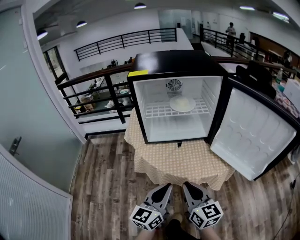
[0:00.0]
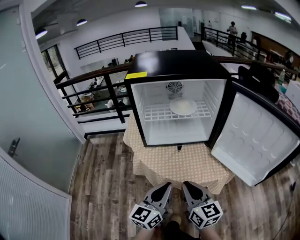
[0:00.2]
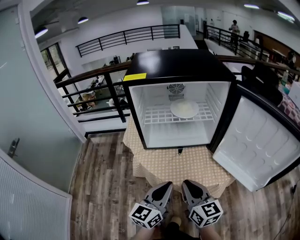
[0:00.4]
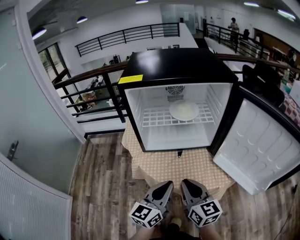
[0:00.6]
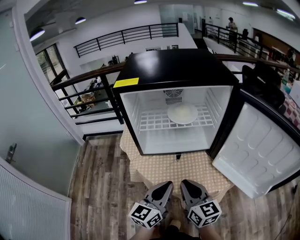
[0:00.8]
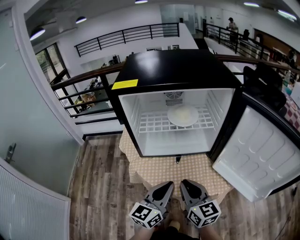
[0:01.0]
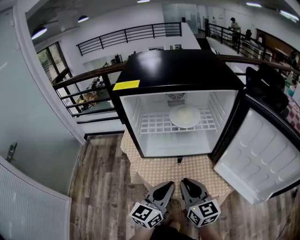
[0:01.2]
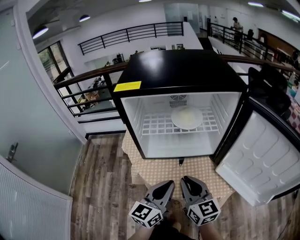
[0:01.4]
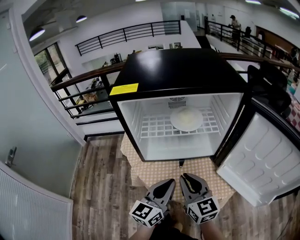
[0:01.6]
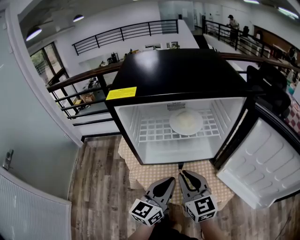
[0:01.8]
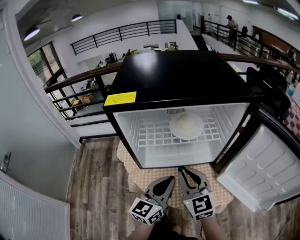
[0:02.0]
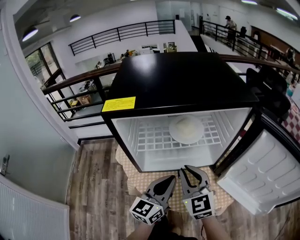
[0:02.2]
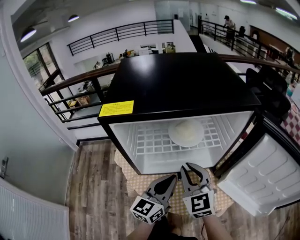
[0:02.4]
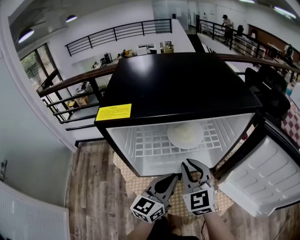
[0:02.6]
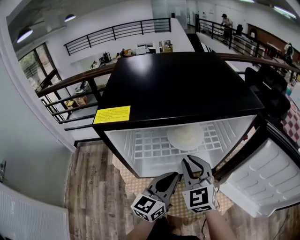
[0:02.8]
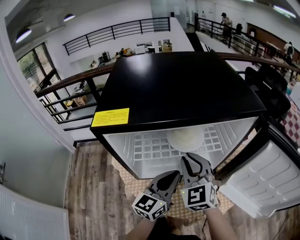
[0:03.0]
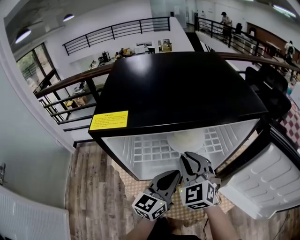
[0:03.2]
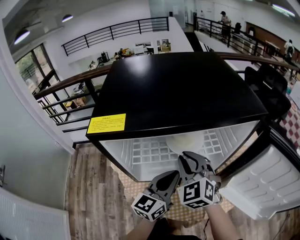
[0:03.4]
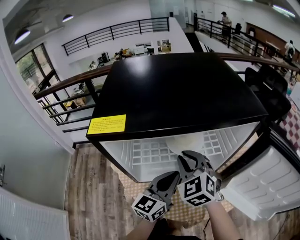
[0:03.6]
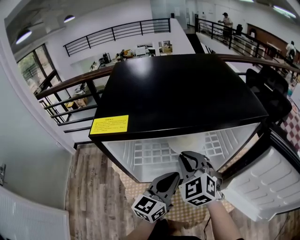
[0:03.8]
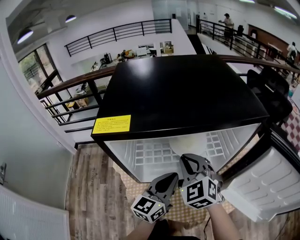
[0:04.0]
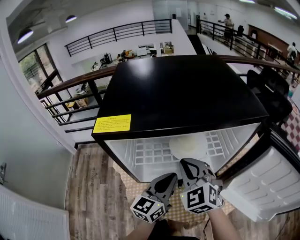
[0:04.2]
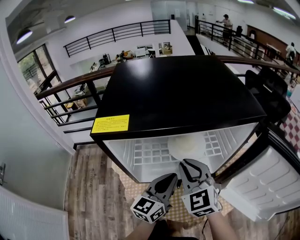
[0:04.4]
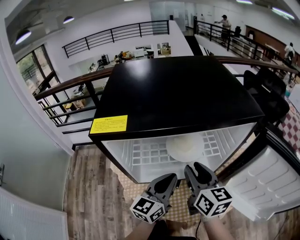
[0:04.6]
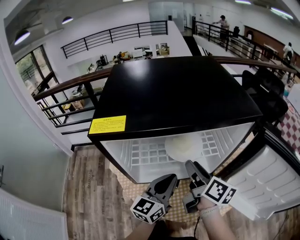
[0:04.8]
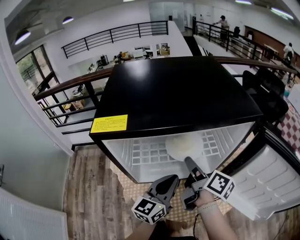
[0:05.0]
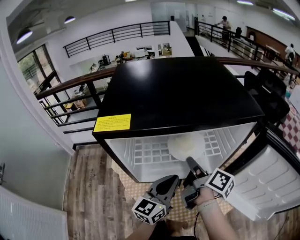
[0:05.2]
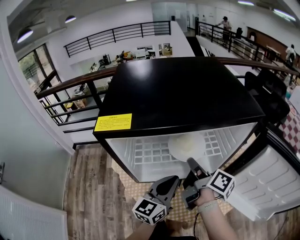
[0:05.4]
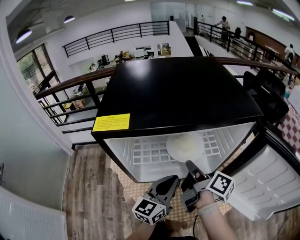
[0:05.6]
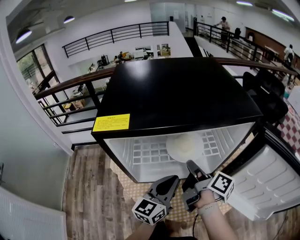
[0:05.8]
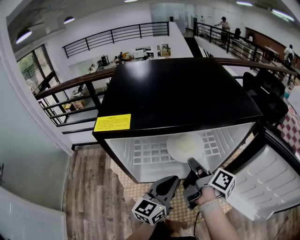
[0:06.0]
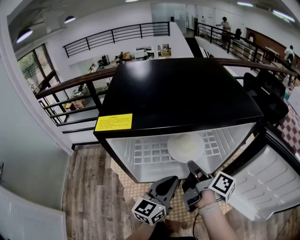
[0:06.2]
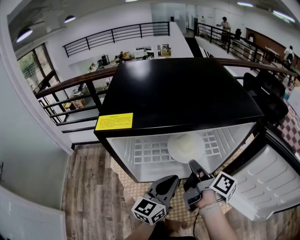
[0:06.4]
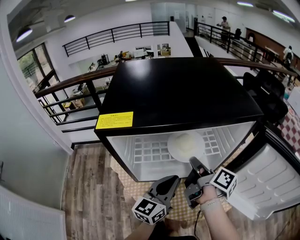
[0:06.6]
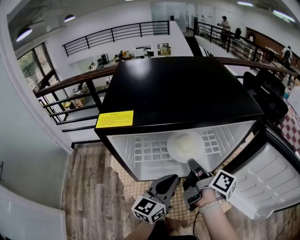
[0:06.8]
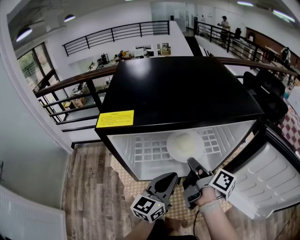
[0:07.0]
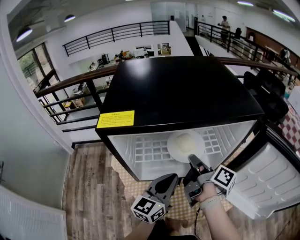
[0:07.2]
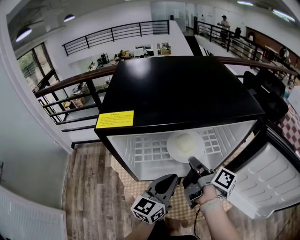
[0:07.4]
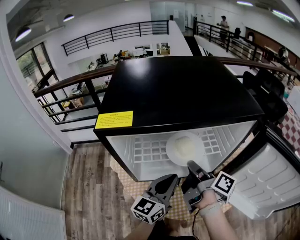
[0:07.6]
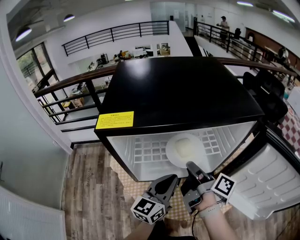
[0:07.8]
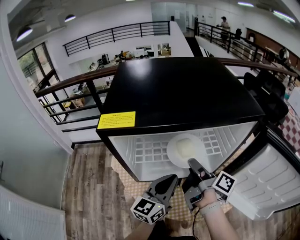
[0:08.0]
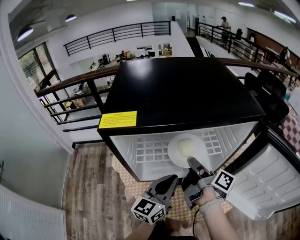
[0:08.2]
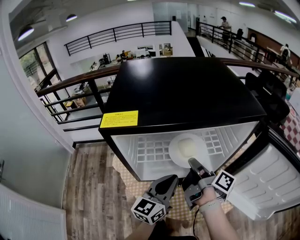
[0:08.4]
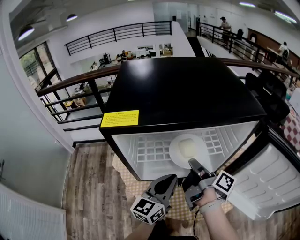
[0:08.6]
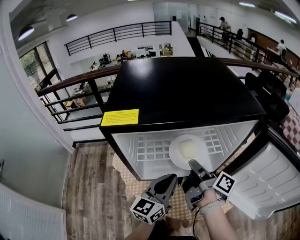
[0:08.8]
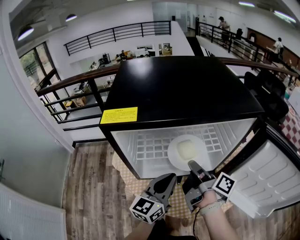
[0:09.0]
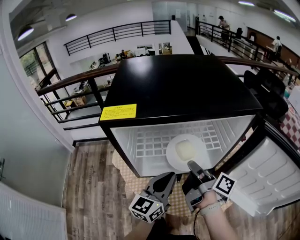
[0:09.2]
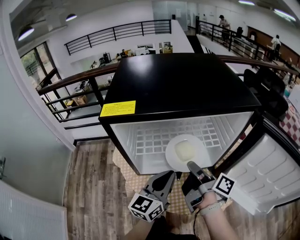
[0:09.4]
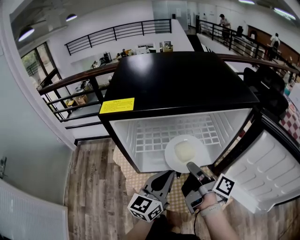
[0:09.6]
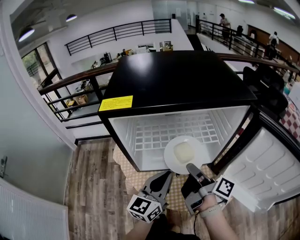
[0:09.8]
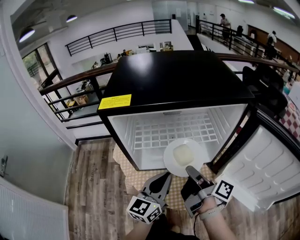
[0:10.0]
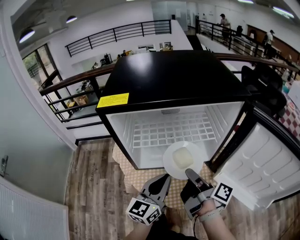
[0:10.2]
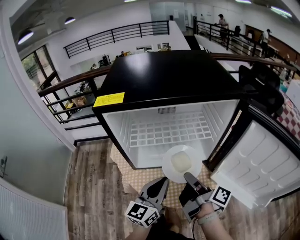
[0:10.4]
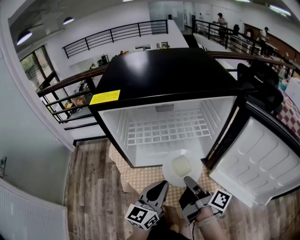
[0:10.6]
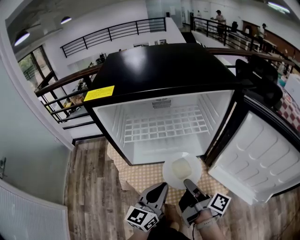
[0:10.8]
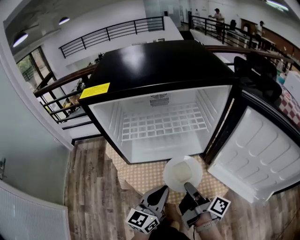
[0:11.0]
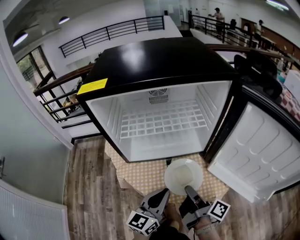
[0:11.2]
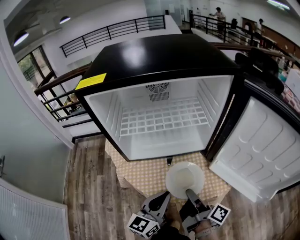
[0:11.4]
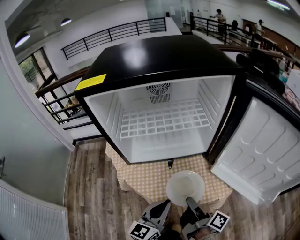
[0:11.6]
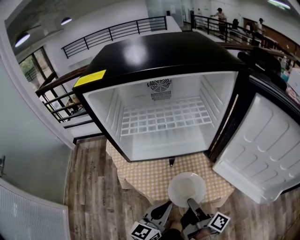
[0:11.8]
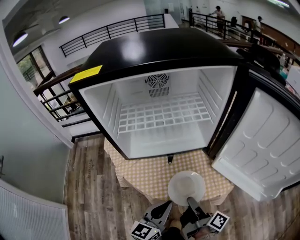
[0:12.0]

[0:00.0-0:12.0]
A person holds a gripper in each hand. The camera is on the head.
0:00.0 to 0:01.6: The grippers both shift forward by approximately 15 cm.
0:01.6 to 0:03.0: The two grippers go approximately 15 cm forward. The right gripper changes its angle by some 40 degrees.
0:03.0 to 0:04.4: The grippers move only a little.
0:04.4 to 0:06.0: The right gripper heads to the right, covering roughly 5 cm, rolls clockwise, seen from behind, by approximately 100 degrees, and opens, then closes again.
0:06.0 to 0:09.0: The grippers move only a little.
0:09.0 to 0:10.4: The two grippers go approximately 10 cm backward.
0:10.4 to 0:12.0: Both grippers move downward and backward, about 15 cm.

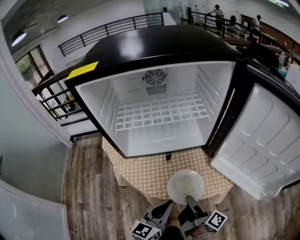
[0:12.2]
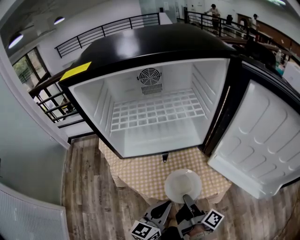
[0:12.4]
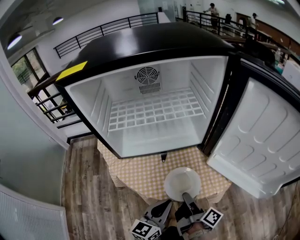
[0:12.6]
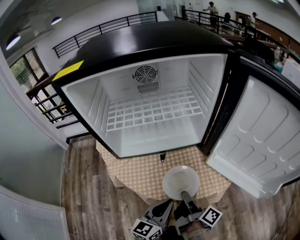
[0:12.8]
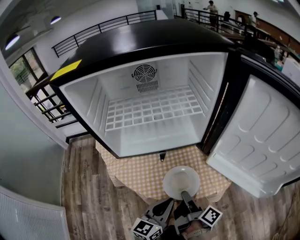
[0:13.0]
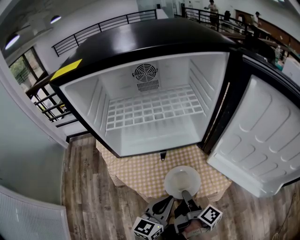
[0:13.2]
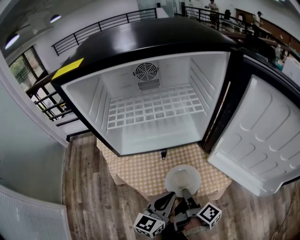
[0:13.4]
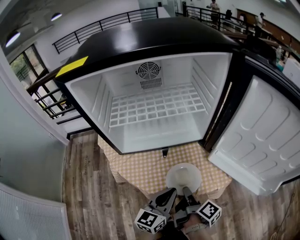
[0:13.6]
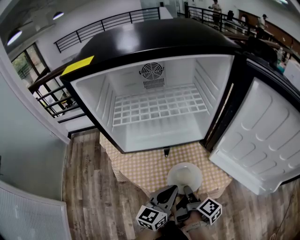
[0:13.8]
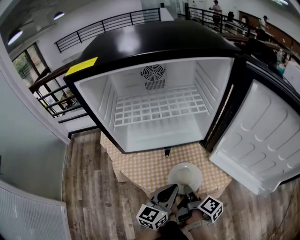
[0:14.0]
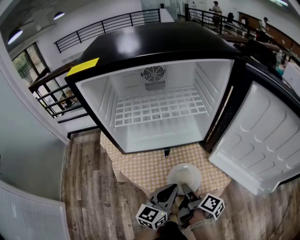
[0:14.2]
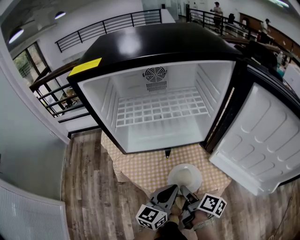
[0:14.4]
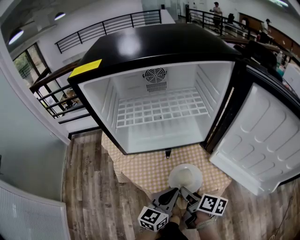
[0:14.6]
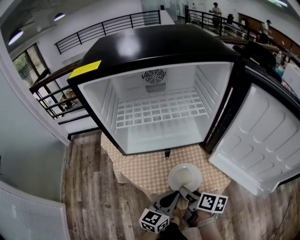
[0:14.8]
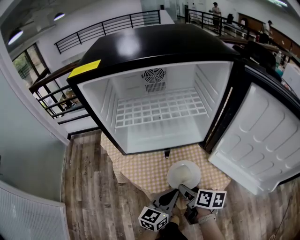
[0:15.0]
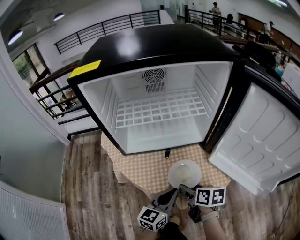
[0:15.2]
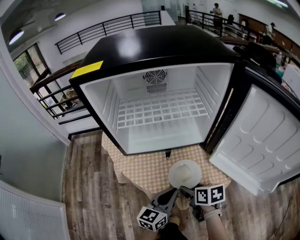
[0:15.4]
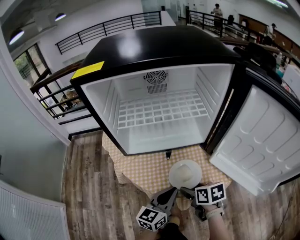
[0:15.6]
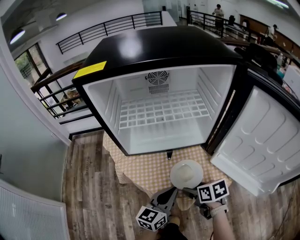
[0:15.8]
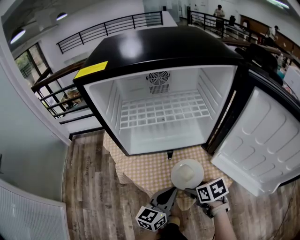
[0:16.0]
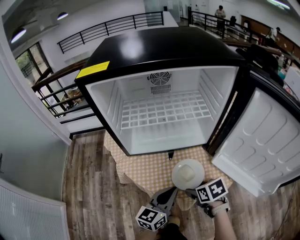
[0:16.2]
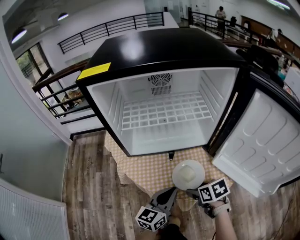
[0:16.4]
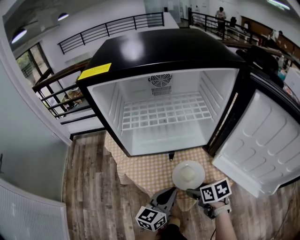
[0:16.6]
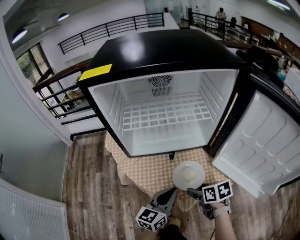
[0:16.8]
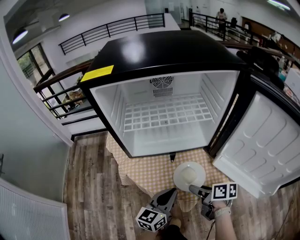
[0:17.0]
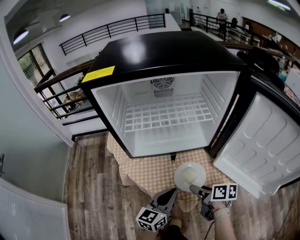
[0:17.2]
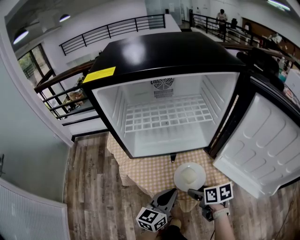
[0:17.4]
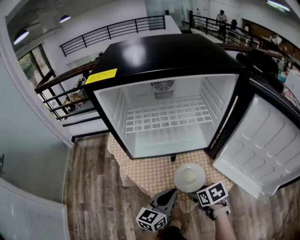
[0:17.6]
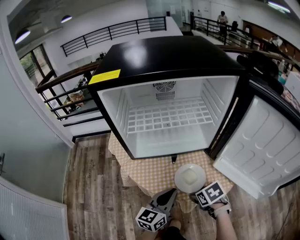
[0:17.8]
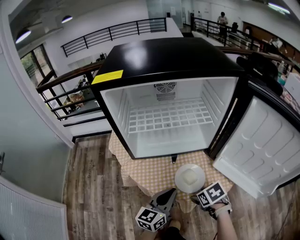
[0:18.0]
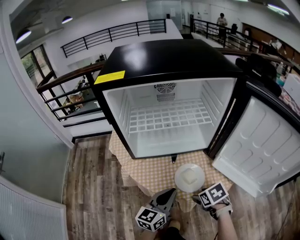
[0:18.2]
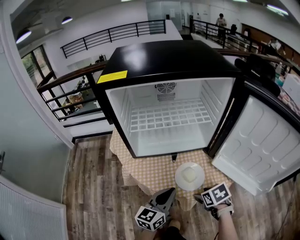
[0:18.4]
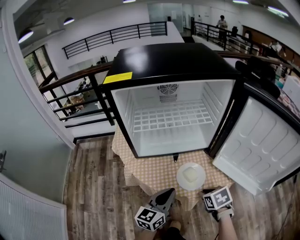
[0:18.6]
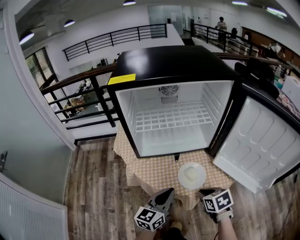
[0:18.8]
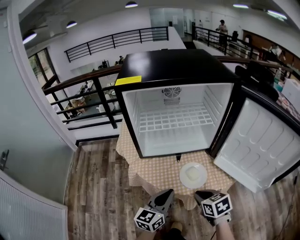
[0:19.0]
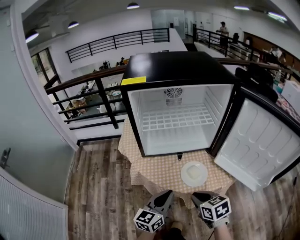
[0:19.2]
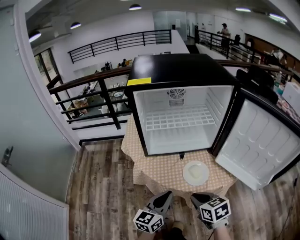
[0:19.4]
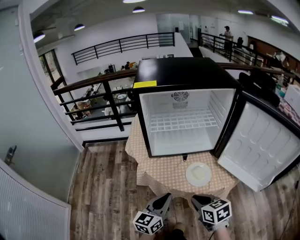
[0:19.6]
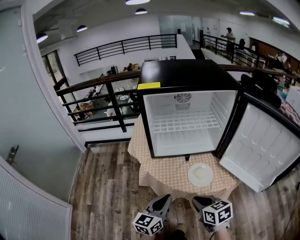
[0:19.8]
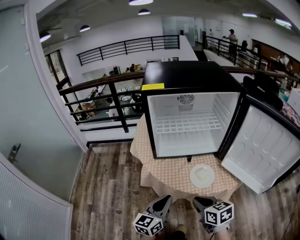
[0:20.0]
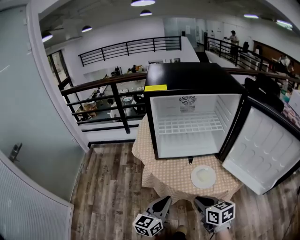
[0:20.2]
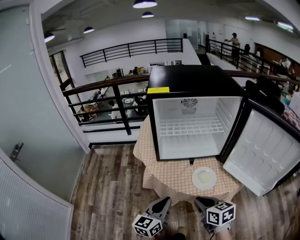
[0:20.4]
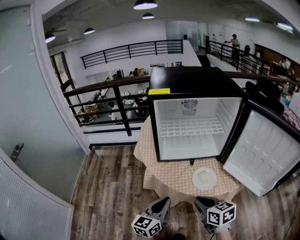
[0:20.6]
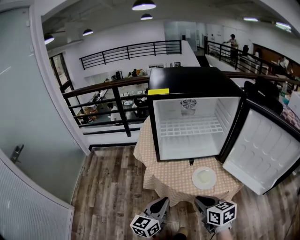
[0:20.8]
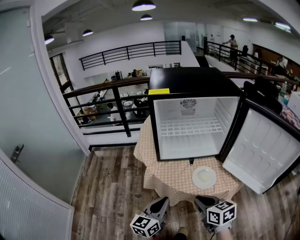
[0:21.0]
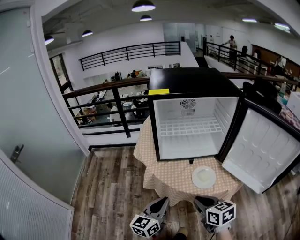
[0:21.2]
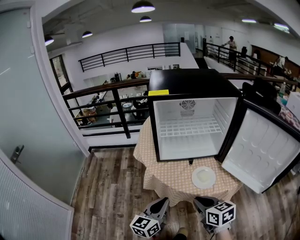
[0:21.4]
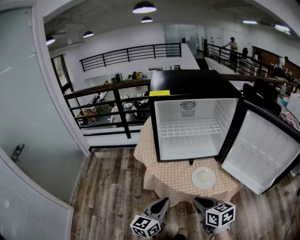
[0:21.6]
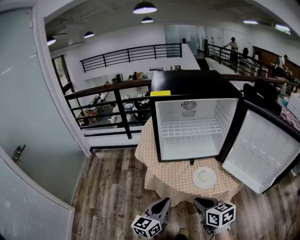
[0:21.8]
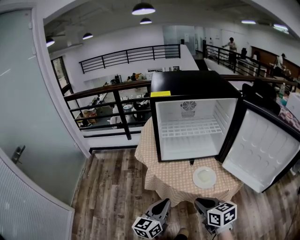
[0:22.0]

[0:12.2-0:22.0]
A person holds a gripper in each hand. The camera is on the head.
0:12.2 to 0:13.6: The grippers stay close to where they were, moving slightly.
0:13.6 to 0:15.0: The right gripper rotates approximately 50 degrees, and opens up.
0:15.0 to 0:16.4: The right gripper turns by some 40 degrees.
0:17.8 to 0:19.2: The left gripper is displaced to the left and backward by roughly 10 cm. The right gripper is displaced upward and to the left by roughly 10 cm, rotates some 30 degrees, and closes its fingers.
0:19.2 to 0:20.6: The left gripper is displaced to the left by approximately 5 cm. Meanwhile the right gripper changes place by roughly 5 cm.
0:20.6 to 0:22.0: There are only small adjustments of the grippers.

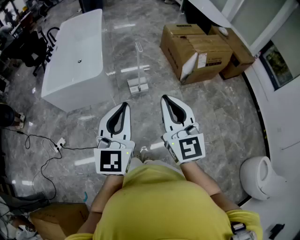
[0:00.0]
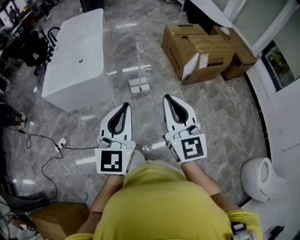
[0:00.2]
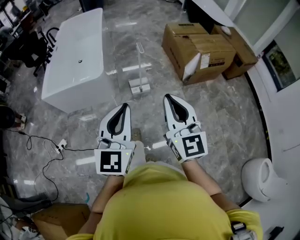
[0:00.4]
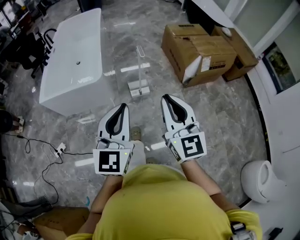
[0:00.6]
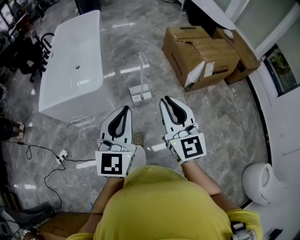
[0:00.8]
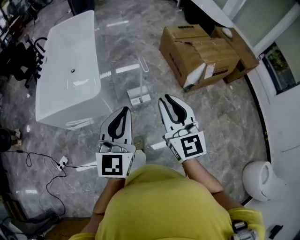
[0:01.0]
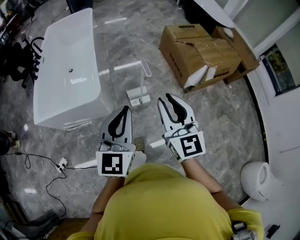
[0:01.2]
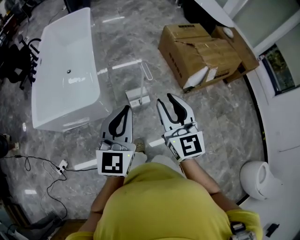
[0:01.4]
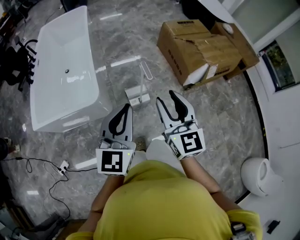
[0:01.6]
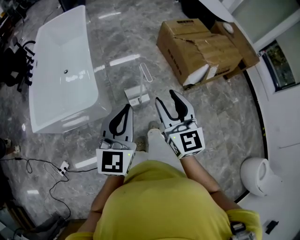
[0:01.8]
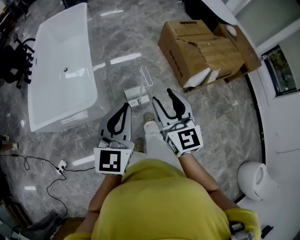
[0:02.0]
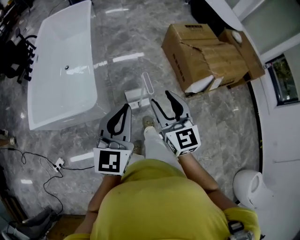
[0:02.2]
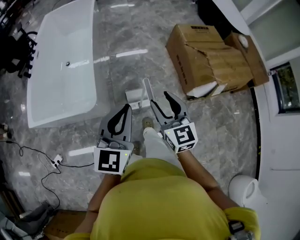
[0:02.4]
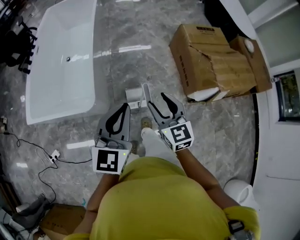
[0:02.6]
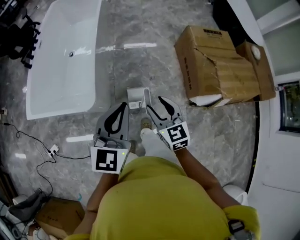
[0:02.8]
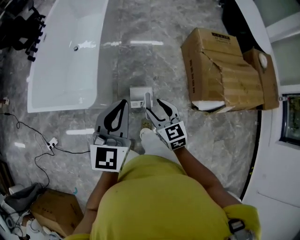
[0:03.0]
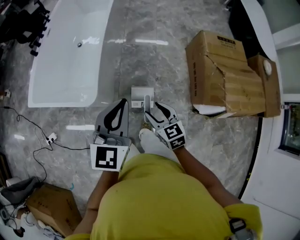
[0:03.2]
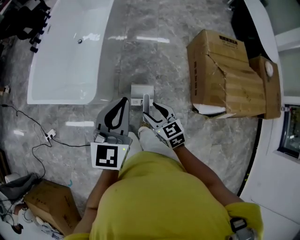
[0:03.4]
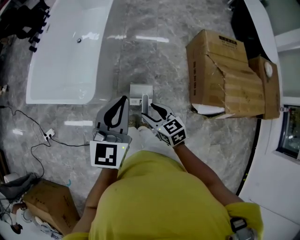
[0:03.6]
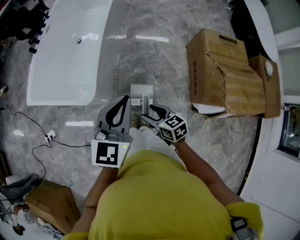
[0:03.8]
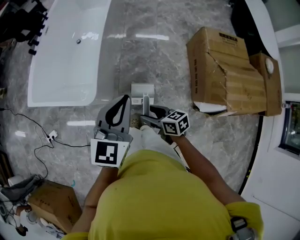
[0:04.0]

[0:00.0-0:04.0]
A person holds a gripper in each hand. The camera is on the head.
0:00.0 to 0:01.4: The two grippers go approximately 30 cm forward. The right gripper opens its fingers.
0:01.4 to 0:02.6: The right gripper goes roughly 25 cm forward and downward, and rotates some 20 degrees. The left gripper goes some 20 cm forward.
0:02.6 to 0:04.0: The left gripper shifts by approximately 10 cm. The right gripper is displaced downward by about 15 cm, and rotates some 50 degrees.
